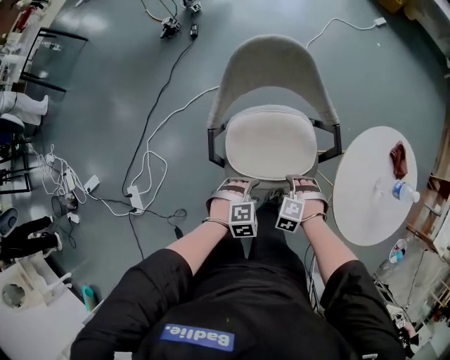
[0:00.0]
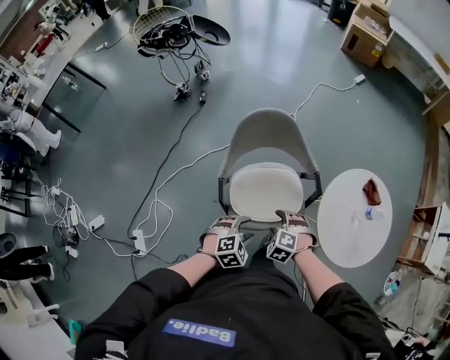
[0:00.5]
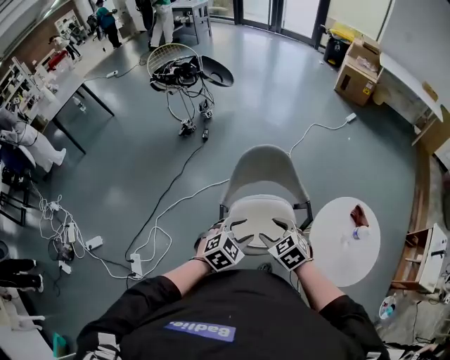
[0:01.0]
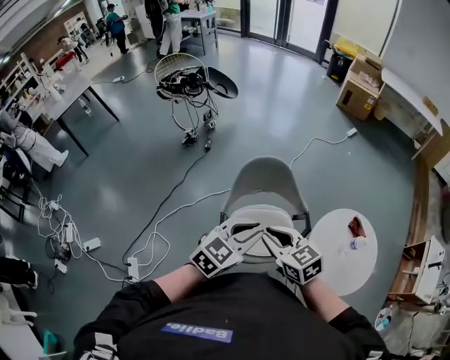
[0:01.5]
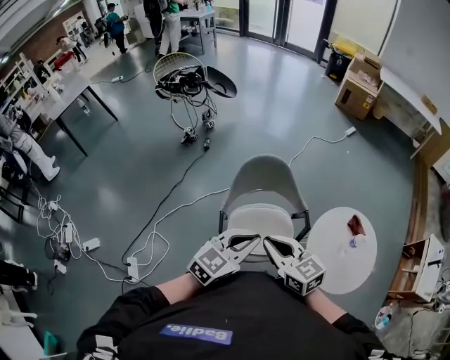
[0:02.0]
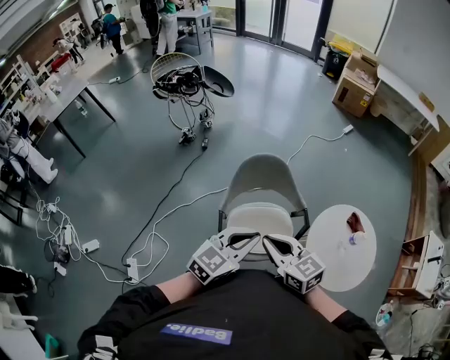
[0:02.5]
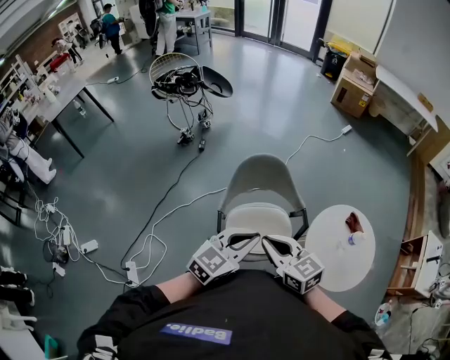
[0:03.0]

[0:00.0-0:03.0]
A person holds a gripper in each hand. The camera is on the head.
0:00.0 to 0:01.5: The two grippers go approximately 40 cm upward. The left gripper tilts its fingers roughly 50 degrees upward, and closes its fingers, while the right gripper tips its fingers upward by about 50 degrees, and closes up.
0:01.5 to 0:03.0: The grippers move only a little.

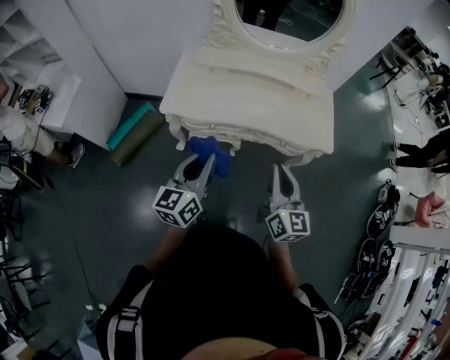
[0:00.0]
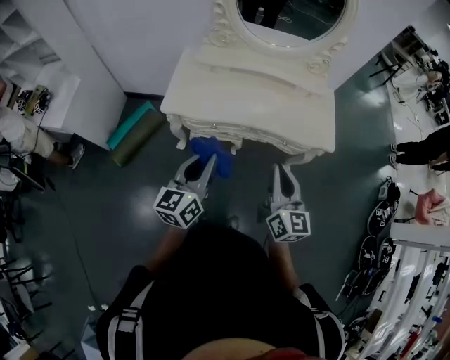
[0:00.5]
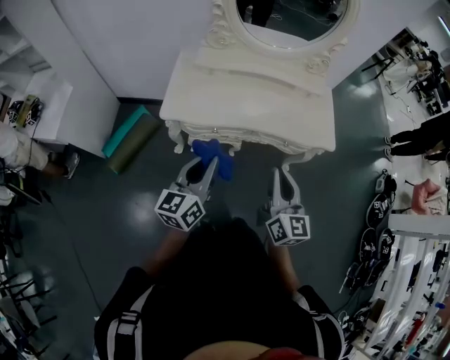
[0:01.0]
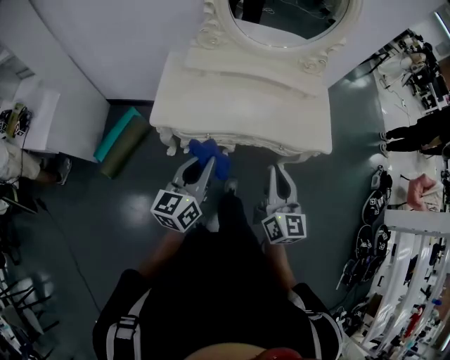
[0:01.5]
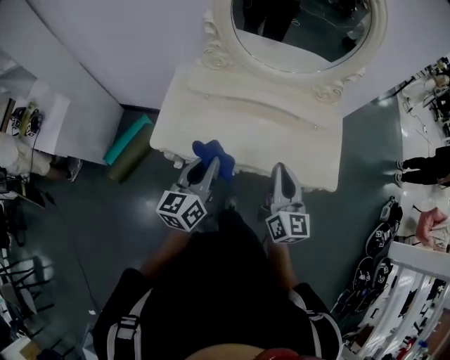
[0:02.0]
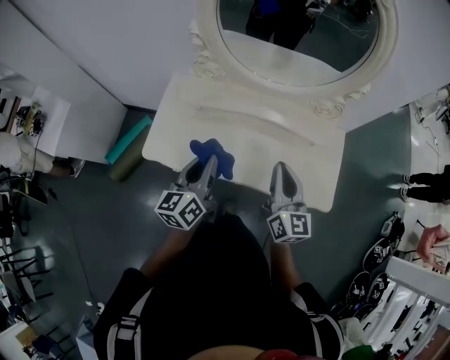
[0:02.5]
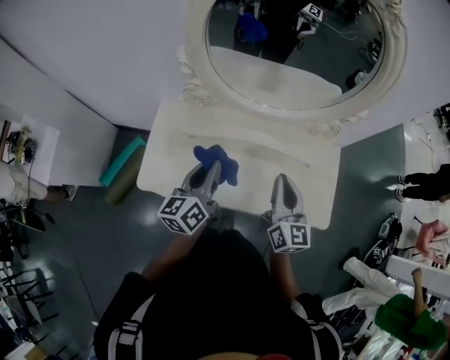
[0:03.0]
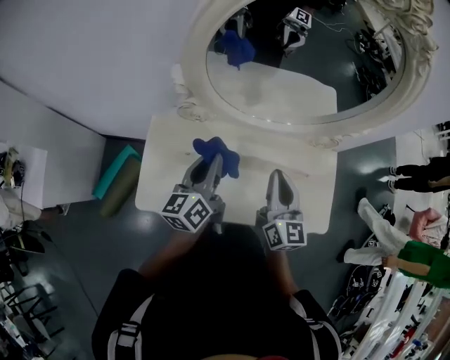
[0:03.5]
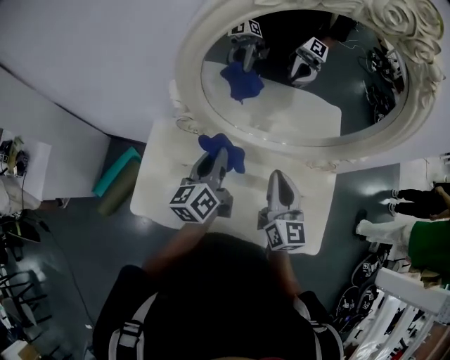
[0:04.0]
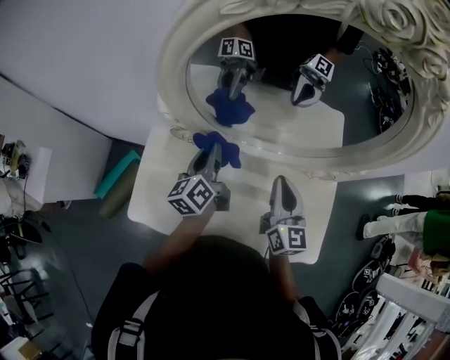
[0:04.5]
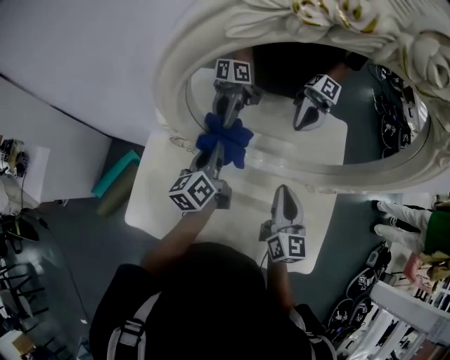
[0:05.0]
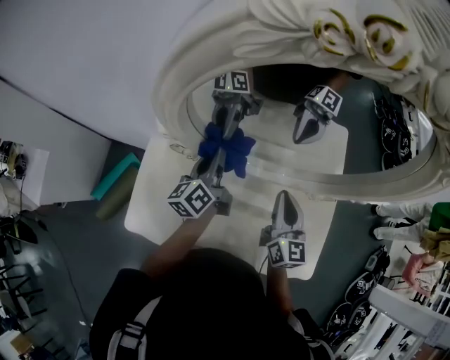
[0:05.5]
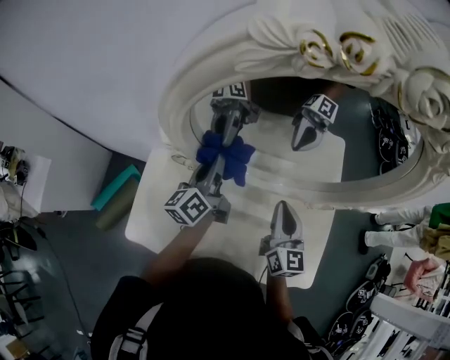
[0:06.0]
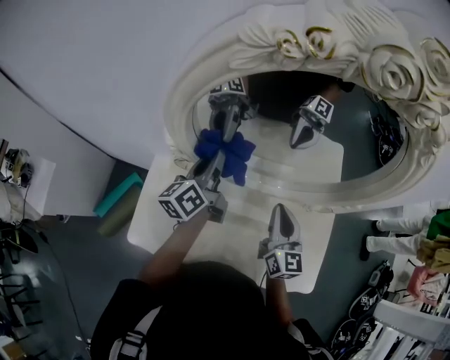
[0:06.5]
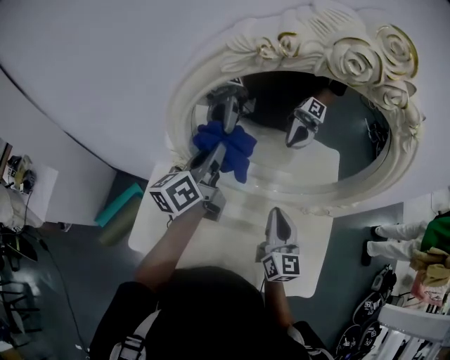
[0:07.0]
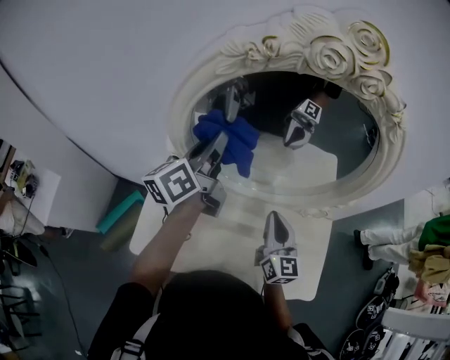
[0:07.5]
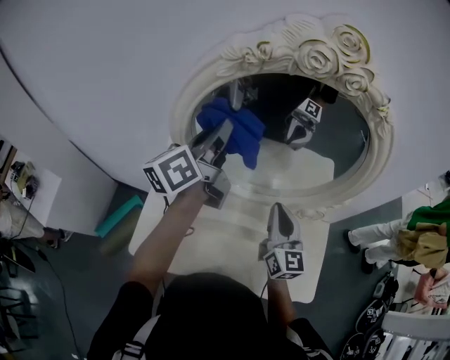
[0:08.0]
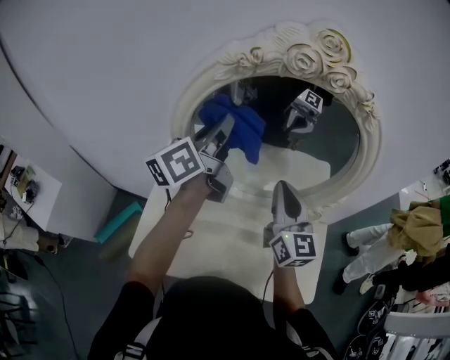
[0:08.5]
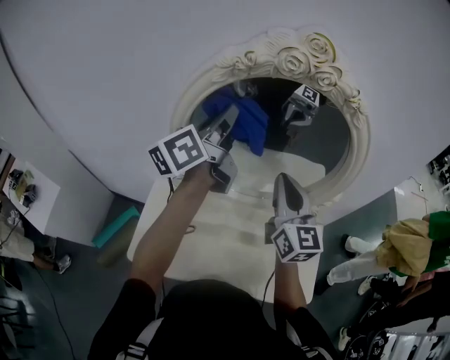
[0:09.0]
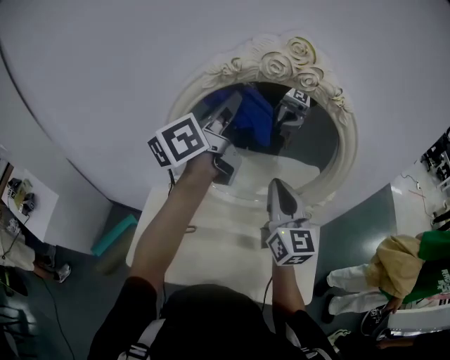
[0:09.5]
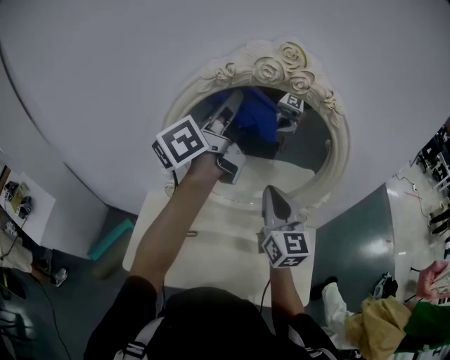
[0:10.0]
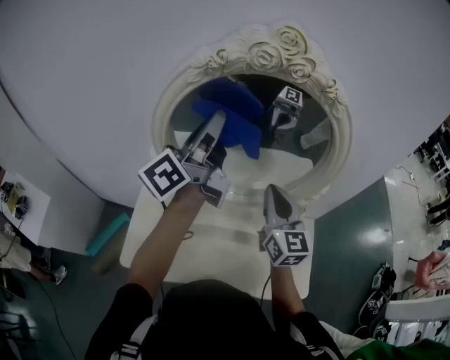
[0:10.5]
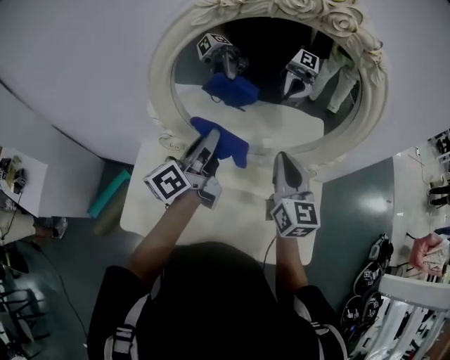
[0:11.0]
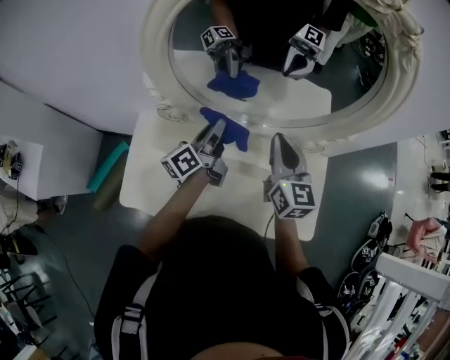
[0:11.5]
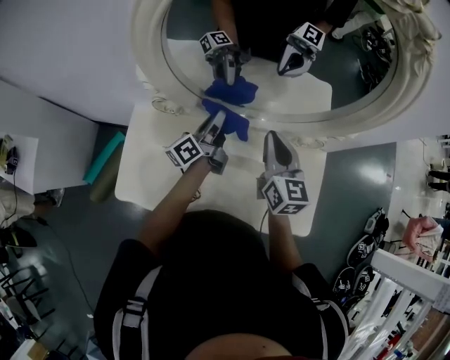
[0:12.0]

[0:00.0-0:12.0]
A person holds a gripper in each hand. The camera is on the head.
0:00.0 to 0:02.0: Both grippers travel together forward, approximately 25 cm.
0:02.0 to 0:04.0: The grippers both shift forward by roughly 35 cm.
0:04.0 to 0:06.0: The right gripper heads forward, covering roughly 5 cm; the left gripper is displaced forward by approximately 10 cm.
0:06.0 to 0:08.0: The right gripper travels upward by some 10 cm, while the left gripper moves upward, about 25 cm.
0:08.0 to 0:10.0: The left gripper goes some 15 cm upward and to the right, while the right gripper travels upward by approximately 10 cm.
0:10.0 to 0:12.0: The left gripper travels downward by about 40 cm, and turns by approximately 20 degrees, while the right gripper is displaced downward by some 15 cm.

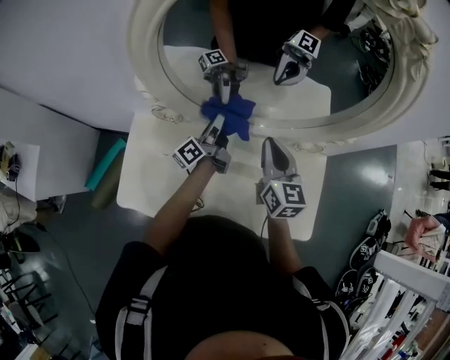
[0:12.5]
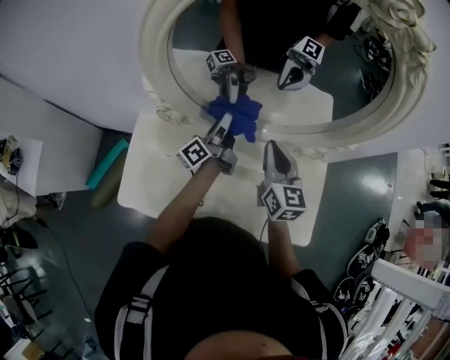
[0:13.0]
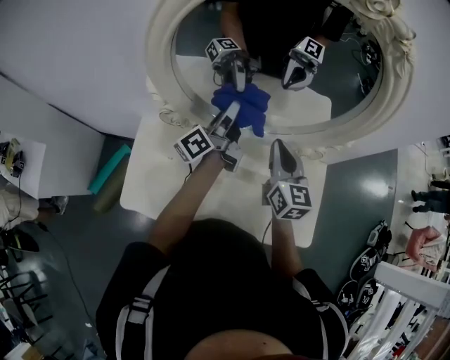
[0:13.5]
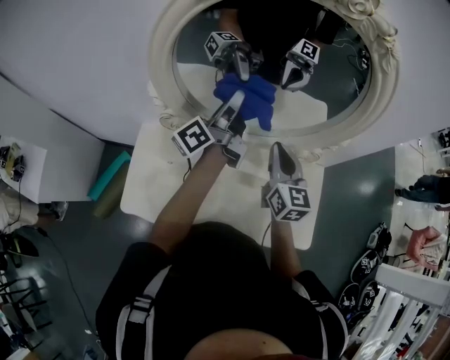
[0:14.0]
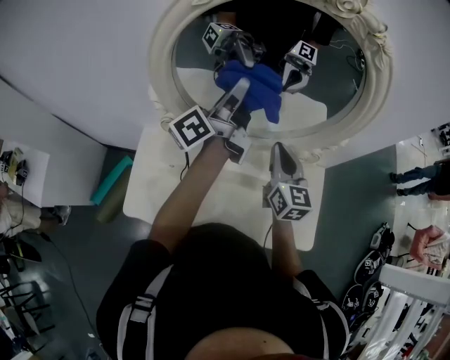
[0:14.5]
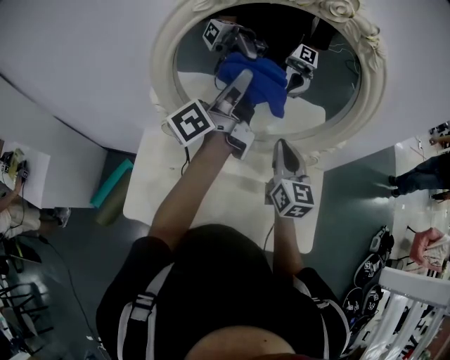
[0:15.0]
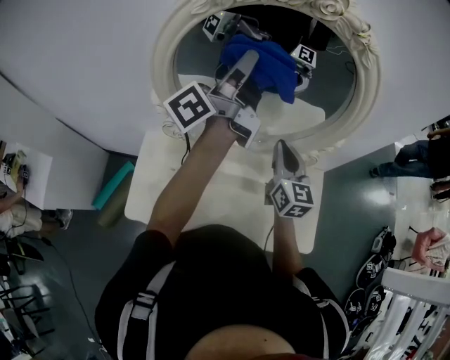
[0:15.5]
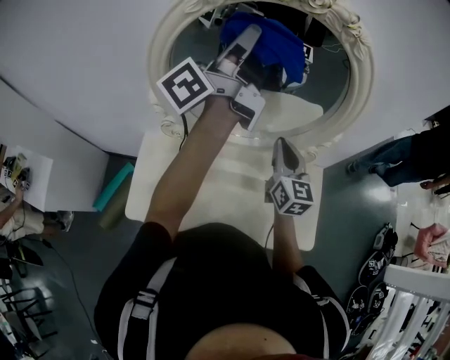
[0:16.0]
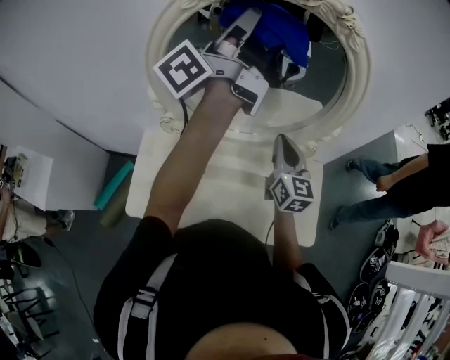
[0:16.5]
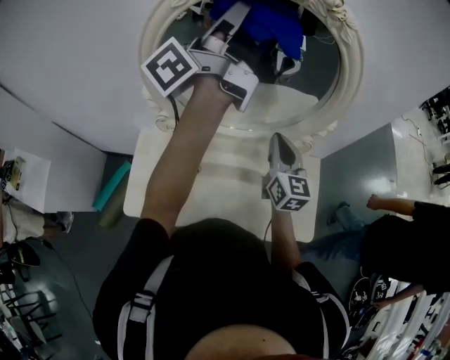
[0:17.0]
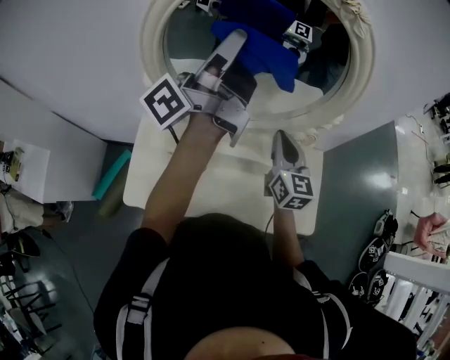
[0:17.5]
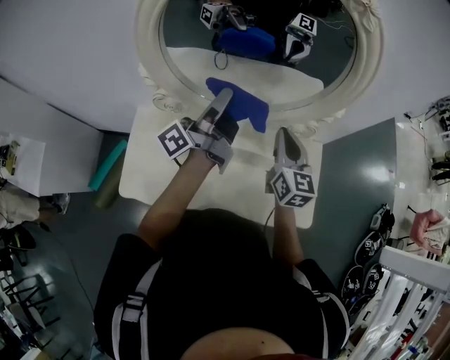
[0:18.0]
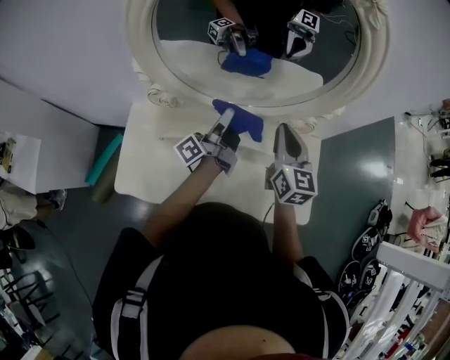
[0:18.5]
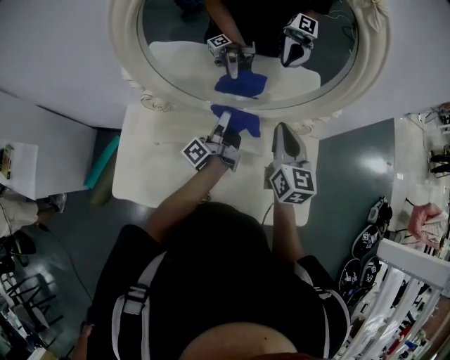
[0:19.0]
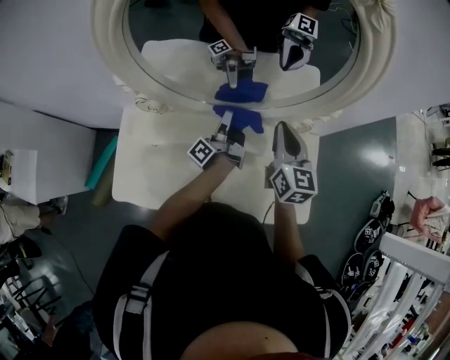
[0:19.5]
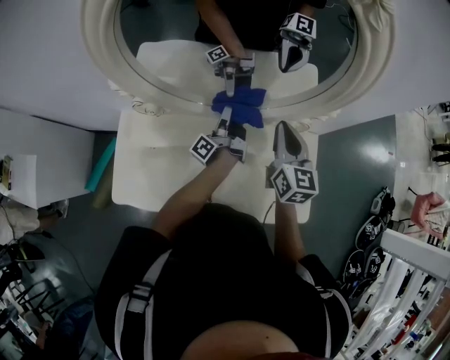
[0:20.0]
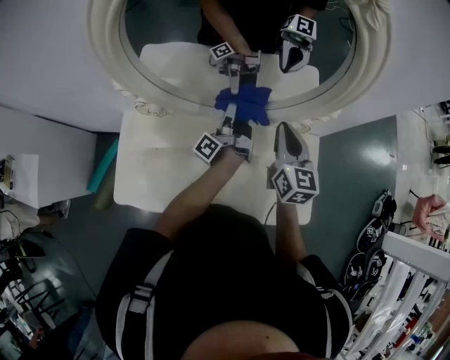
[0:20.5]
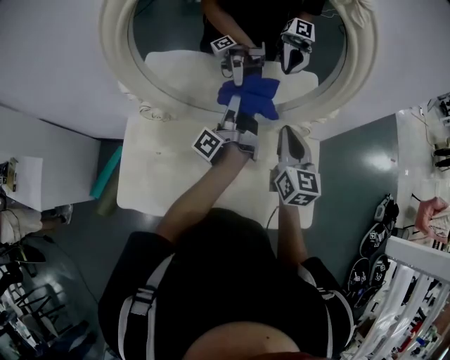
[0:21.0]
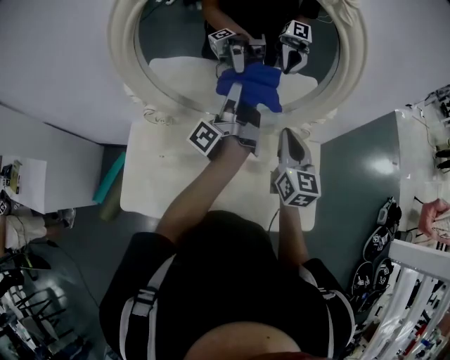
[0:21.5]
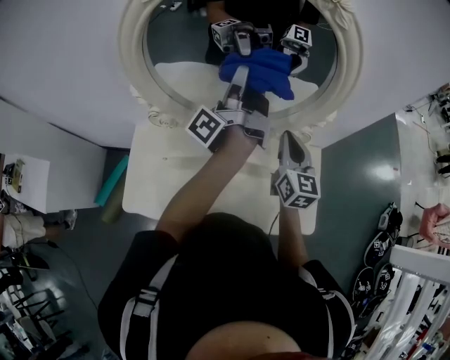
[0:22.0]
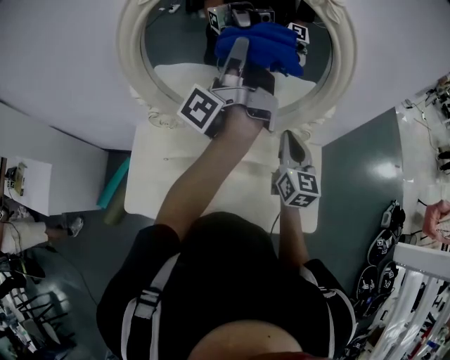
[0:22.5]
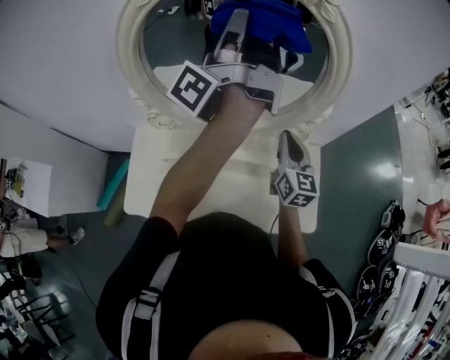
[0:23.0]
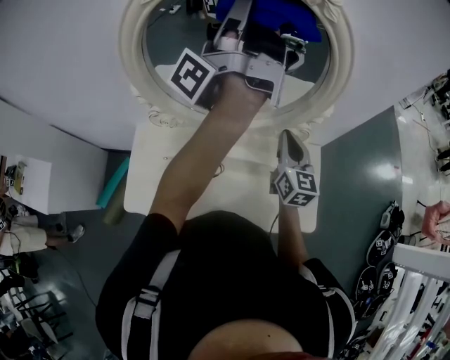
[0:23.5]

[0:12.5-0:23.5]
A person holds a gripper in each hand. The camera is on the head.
0:12.5 to 0:14.5: The left gripper heads upward, covering roughly 30 cm. Meanwhile the right gripper moves approximately 5 cm.
0:14.5 to 0:16.0: The left gripper goes approximately 15 cm upward.
0:16.0 to 0:18.0: The left gripper is displaced downward and backward by some 25 cm. The right gripper moves roughly 5 cm.
0:18.0 to 0:20.0: The right gripper heads forward, covering about 5 cm. Meanwhile the left gripper heads downward and forward, covering some 25 cm, and swivels roughly 30 degrees.
0:20.0 to 0:21.5: The left gripper moves upward, roughly 20 cm.
0:21.5 to 0:23.5: The left gripper moves upward, roughly 25 cm, and swivels about 20 degrees.

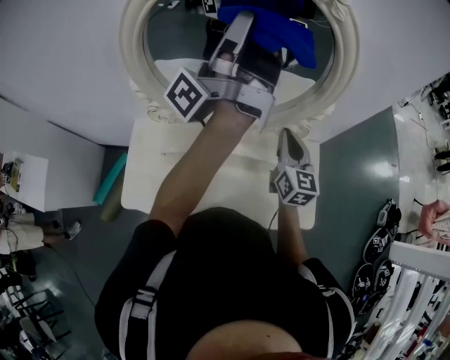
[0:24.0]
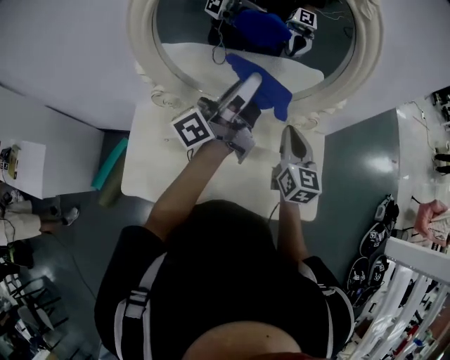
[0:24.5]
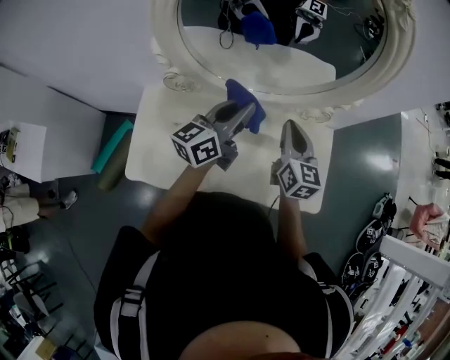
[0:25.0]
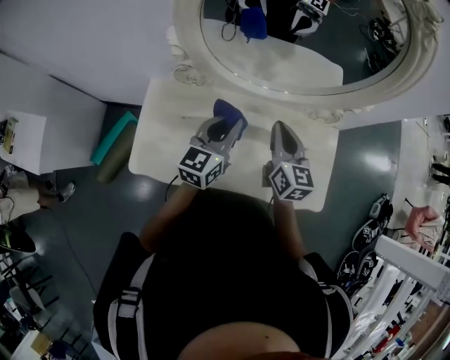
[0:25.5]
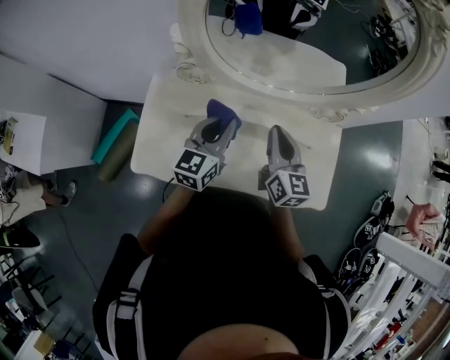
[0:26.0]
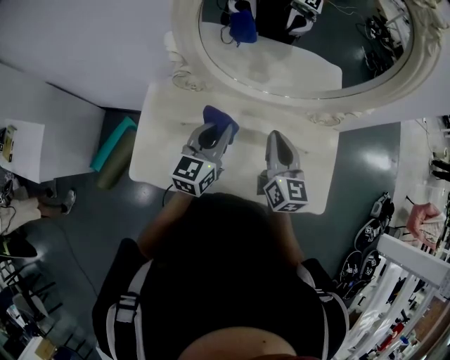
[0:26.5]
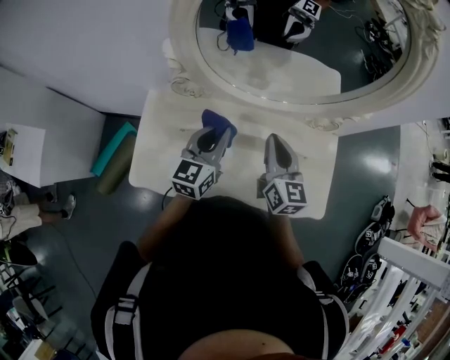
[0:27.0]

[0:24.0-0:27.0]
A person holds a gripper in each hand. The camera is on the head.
0:24.0 to 0:25.5: The right gripper shifts roughly 15 cm to the left and backward. The left gripper travels downward and backward by about 35 cm, and points its fingers about 60 degrees further downward.
0:25.5 to 0:27.0: The grippers make only small movements.
